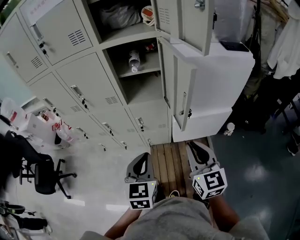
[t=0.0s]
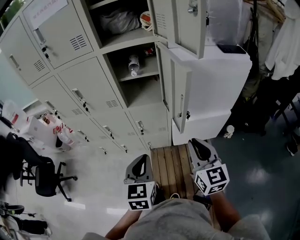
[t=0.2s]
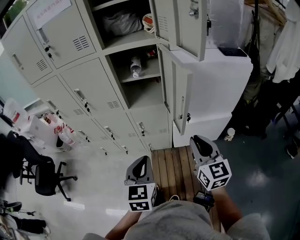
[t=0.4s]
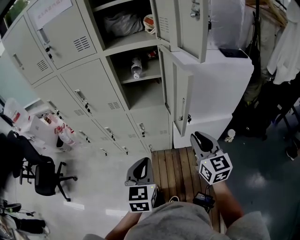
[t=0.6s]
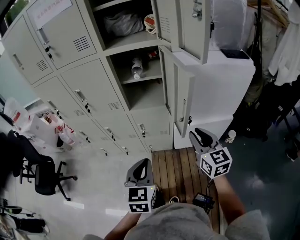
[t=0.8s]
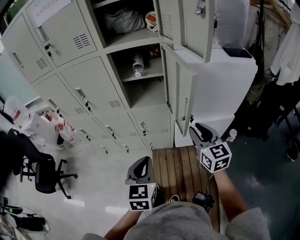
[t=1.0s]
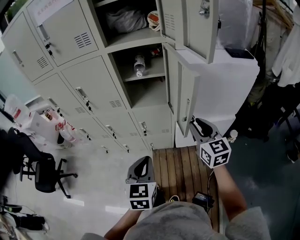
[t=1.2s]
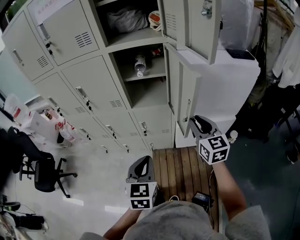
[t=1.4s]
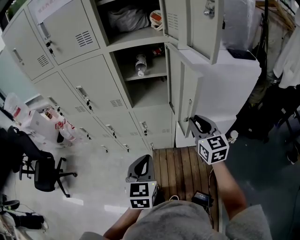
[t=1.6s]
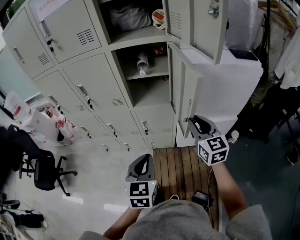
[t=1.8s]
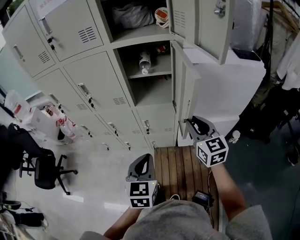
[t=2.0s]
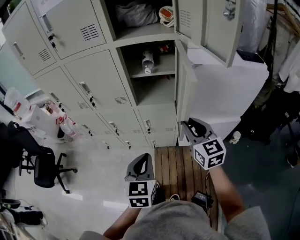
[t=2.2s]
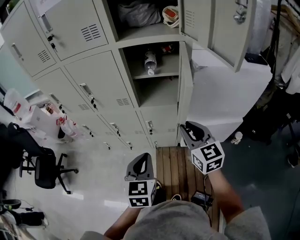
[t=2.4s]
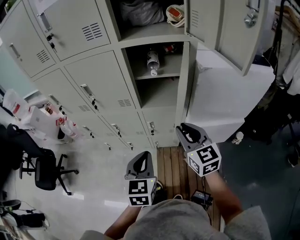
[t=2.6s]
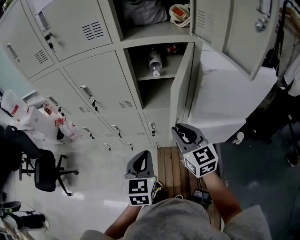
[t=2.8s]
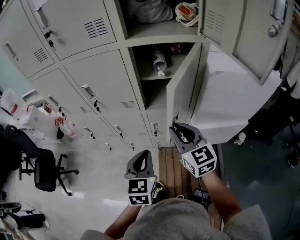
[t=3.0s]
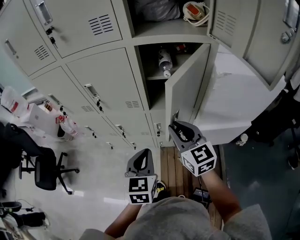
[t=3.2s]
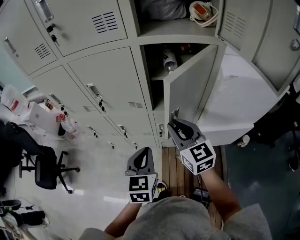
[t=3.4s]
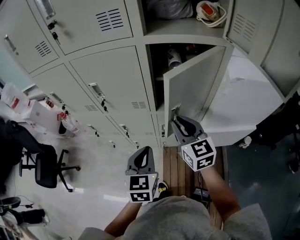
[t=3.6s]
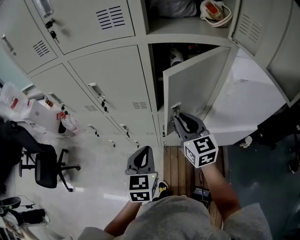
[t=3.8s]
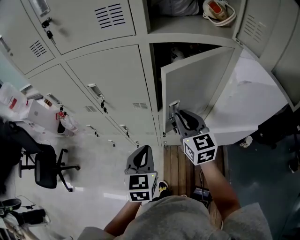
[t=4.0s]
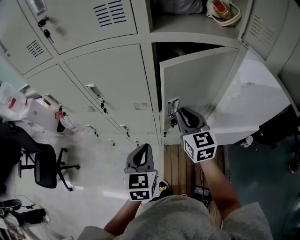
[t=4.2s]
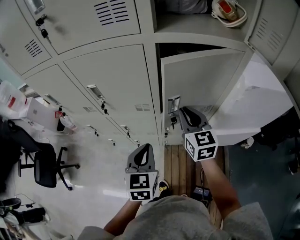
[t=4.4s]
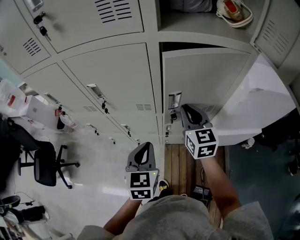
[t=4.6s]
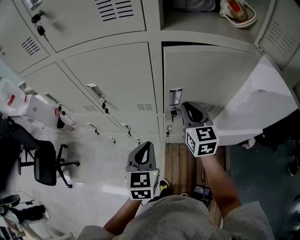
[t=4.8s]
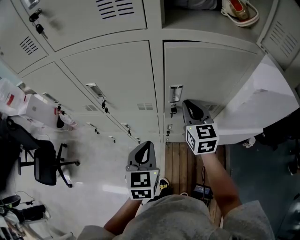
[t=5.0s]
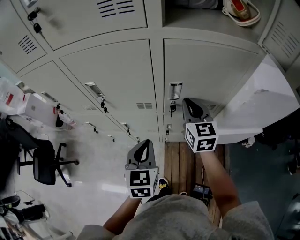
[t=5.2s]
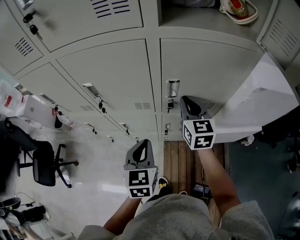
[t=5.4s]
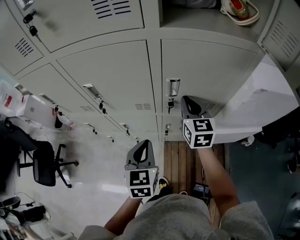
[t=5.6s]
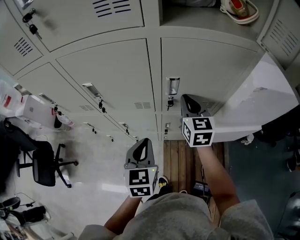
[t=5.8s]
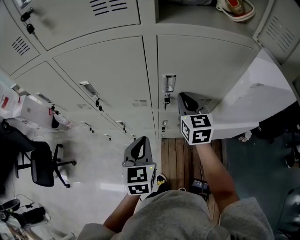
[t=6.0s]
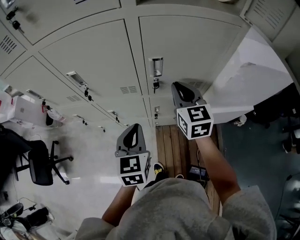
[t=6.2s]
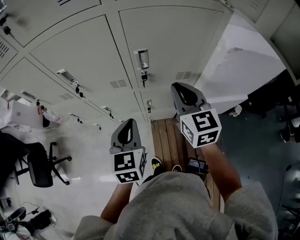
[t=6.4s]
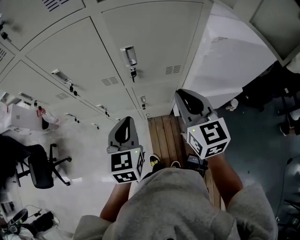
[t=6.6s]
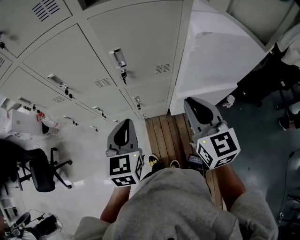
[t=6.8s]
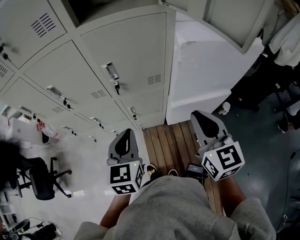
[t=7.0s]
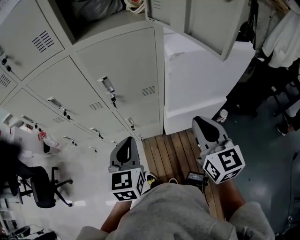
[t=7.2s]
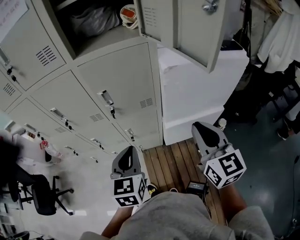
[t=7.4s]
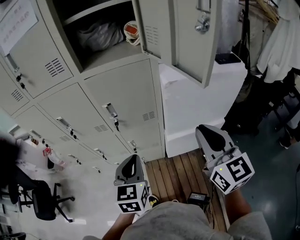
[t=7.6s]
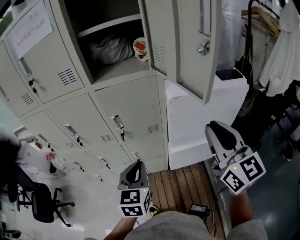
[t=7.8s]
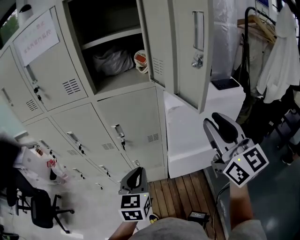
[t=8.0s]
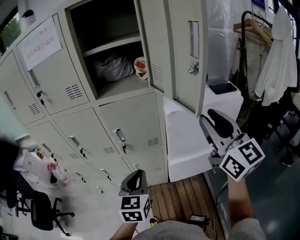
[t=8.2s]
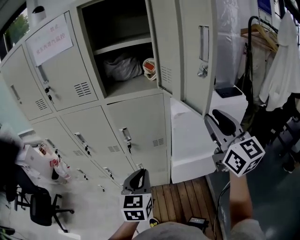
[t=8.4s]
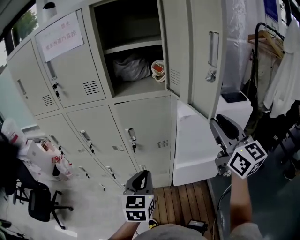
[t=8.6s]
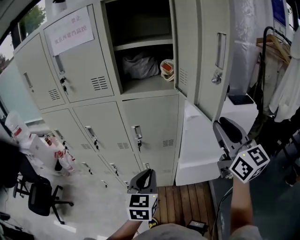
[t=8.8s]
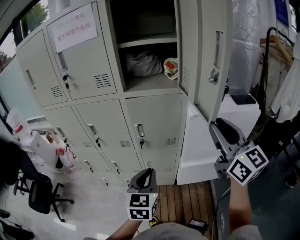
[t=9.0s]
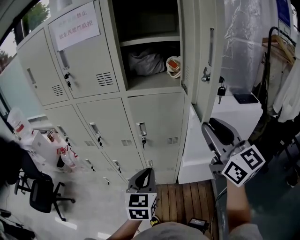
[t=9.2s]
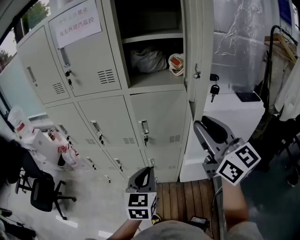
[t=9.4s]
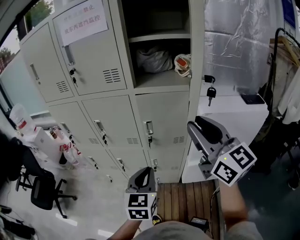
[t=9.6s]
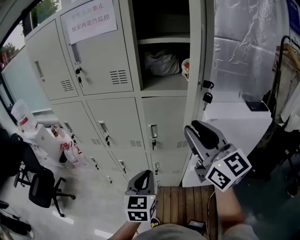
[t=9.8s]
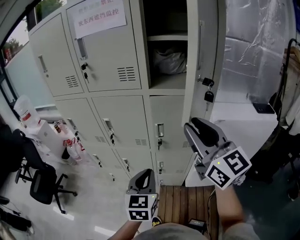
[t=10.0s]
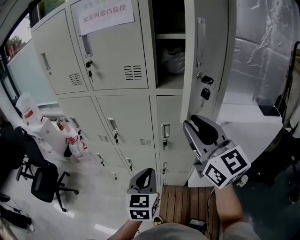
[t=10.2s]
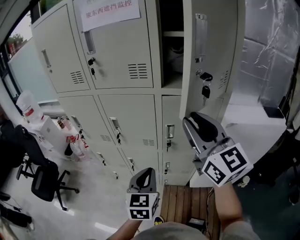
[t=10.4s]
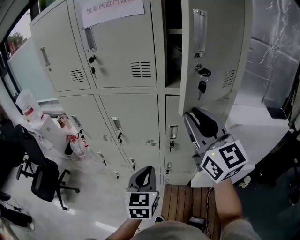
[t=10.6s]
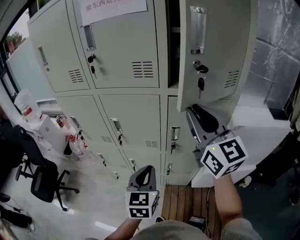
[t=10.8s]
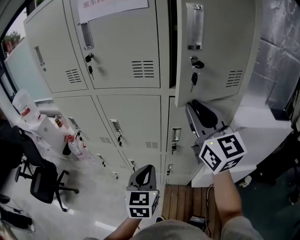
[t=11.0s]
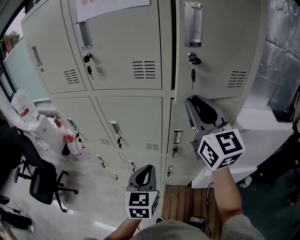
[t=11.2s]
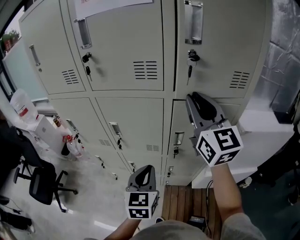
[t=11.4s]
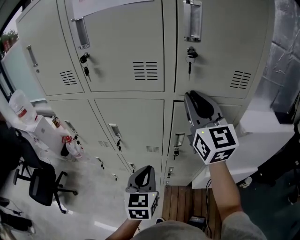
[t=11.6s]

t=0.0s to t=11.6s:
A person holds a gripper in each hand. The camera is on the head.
t=0.0s to t=1.4s: The right gripper goes approximately 15 cm forward.
t=1.4s to t=2.8s: The left gripper is displaced forward and to the left by about 10 cm. The right gripper shifts some 15 cm to the left.
t=2.8s to t=4.4s: The right gripper shifts roughly 15 cm forward; the left gripper moves forward and to the left, about 15 cm.
t=4.4s to t=5.8s: The right gripper heads forward, covering roughly 5 cm.
t=5.8s to t=7.2s: The right gripper heads backward and to the right, covering approximately 35 cm. The left gripper shifts roughly 20 cm to the right, backward and upward.
t=7.2s to t=8.8s: The right gripper moves upward, roughly 20 cm, and swivels roughly 20 degrees, while the left gripper shifts about 5 cm upward.
t=8.8s to t=10.2s: The left gripper is displaced to the left by about 10 cm. The right gripper travels to the left and forward by approximately 25 cm.
t=10.2s to t=11.6s: The right gripper travels forward by some 15 cm. Meanwhile the left gripper heads forward, covering roughly 10 cm.

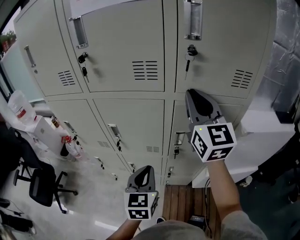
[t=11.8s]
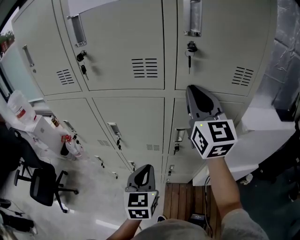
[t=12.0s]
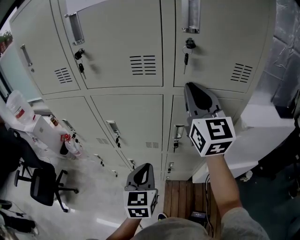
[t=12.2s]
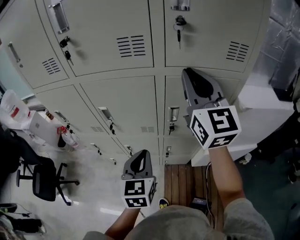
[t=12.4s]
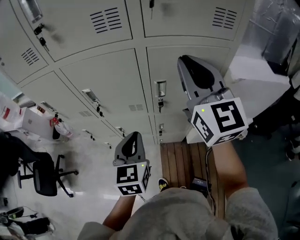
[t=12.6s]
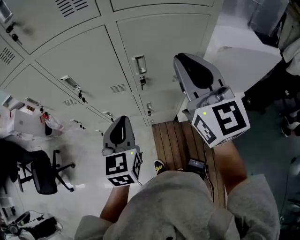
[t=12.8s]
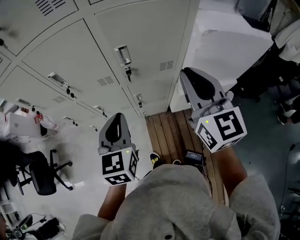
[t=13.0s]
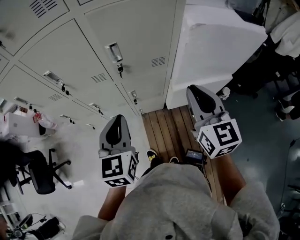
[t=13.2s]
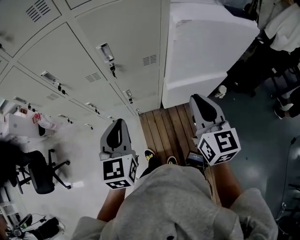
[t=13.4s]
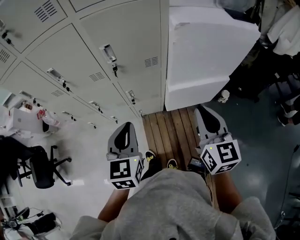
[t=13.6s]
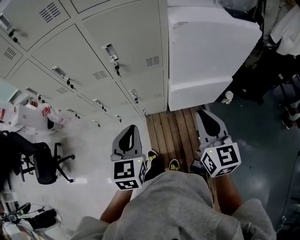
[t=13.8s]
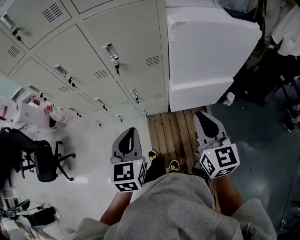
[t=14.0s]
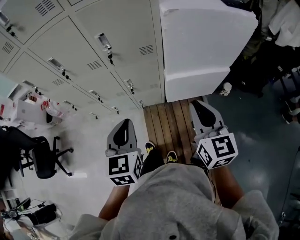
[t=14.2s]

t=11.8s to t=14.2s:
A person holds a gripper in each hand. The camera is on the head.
t=11.8s to t=13.0s: The right gripper travels backward, downward and to the right by roughly 25 cm; the left gripper heads backward and to the right, covering about 10 cm.
t=13.0s to t=14.2s: The left gripper goes about 20 cm backward and to the right; the right gripper heads backward, to the right and downward, covering about 25 cm.

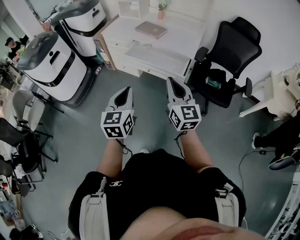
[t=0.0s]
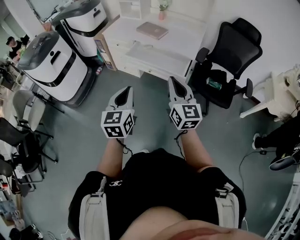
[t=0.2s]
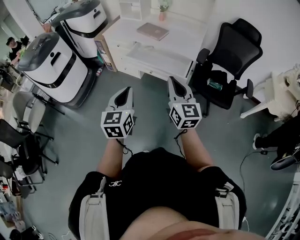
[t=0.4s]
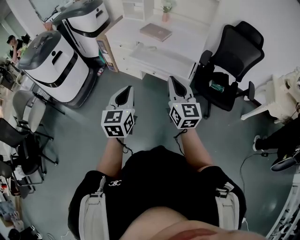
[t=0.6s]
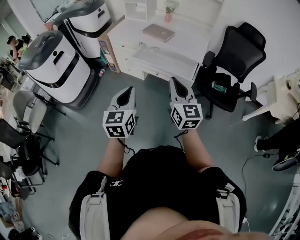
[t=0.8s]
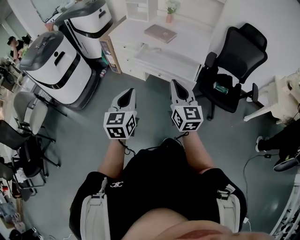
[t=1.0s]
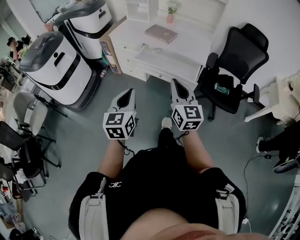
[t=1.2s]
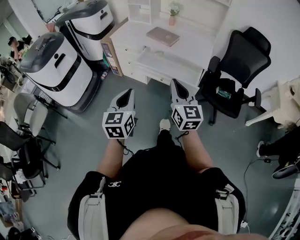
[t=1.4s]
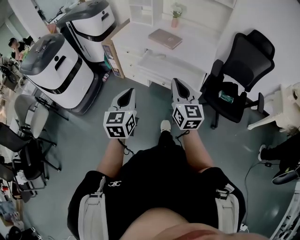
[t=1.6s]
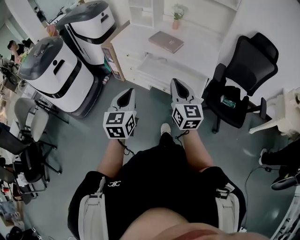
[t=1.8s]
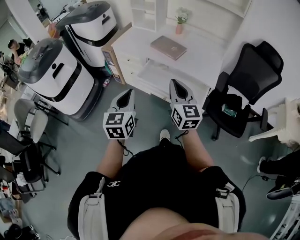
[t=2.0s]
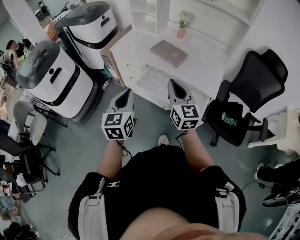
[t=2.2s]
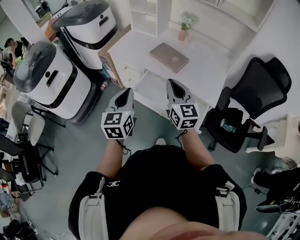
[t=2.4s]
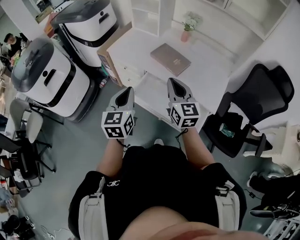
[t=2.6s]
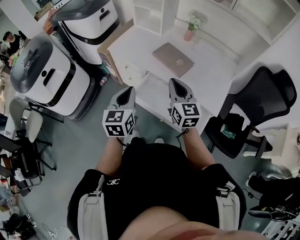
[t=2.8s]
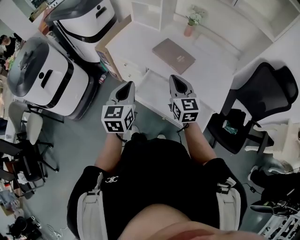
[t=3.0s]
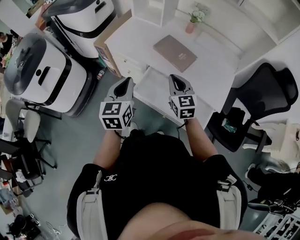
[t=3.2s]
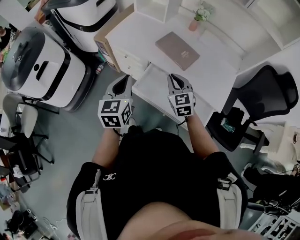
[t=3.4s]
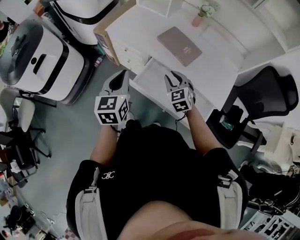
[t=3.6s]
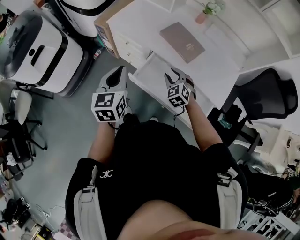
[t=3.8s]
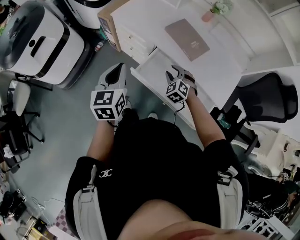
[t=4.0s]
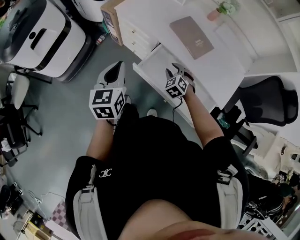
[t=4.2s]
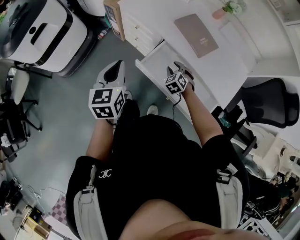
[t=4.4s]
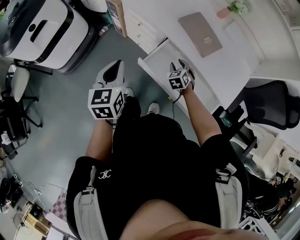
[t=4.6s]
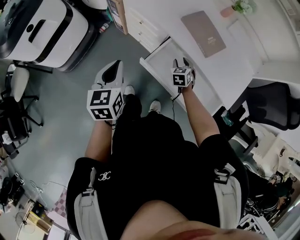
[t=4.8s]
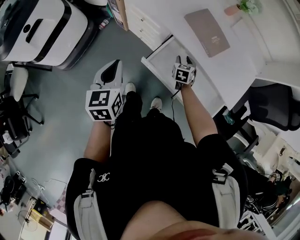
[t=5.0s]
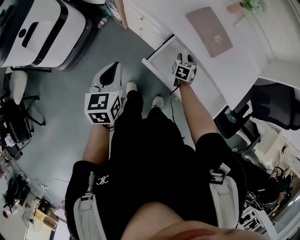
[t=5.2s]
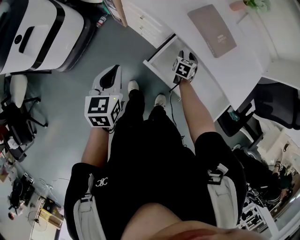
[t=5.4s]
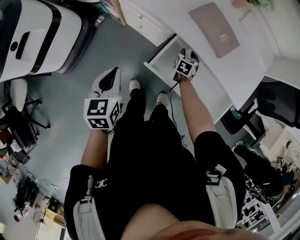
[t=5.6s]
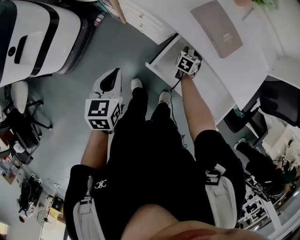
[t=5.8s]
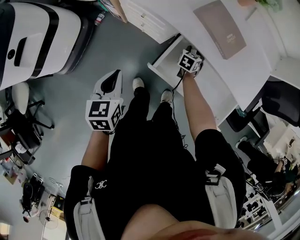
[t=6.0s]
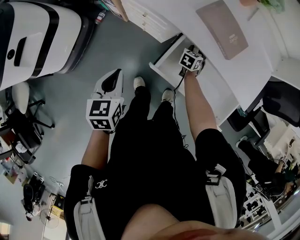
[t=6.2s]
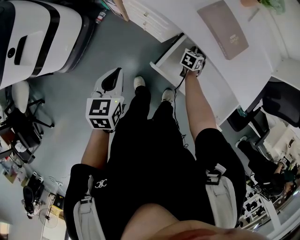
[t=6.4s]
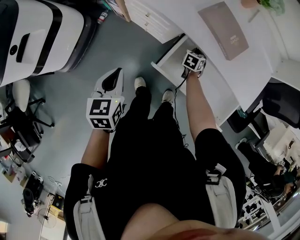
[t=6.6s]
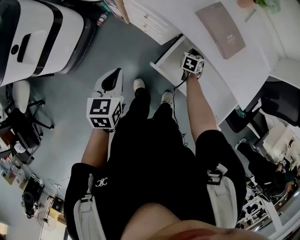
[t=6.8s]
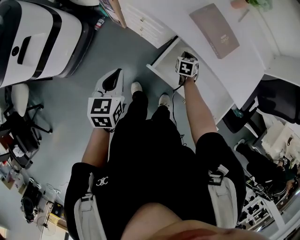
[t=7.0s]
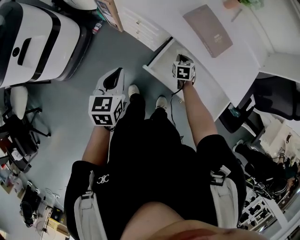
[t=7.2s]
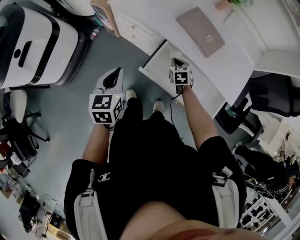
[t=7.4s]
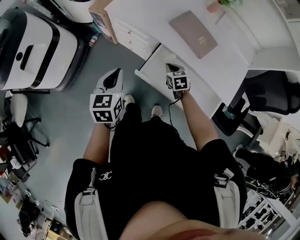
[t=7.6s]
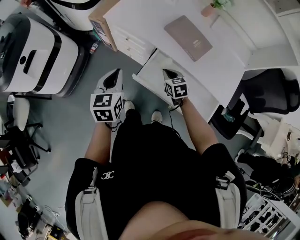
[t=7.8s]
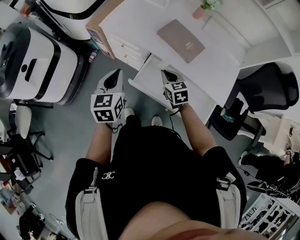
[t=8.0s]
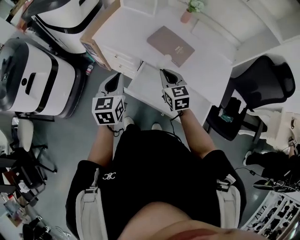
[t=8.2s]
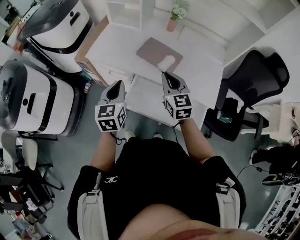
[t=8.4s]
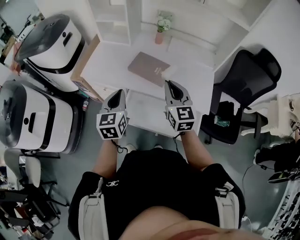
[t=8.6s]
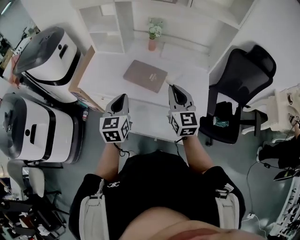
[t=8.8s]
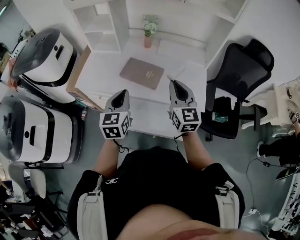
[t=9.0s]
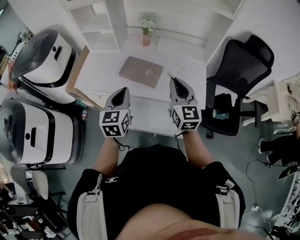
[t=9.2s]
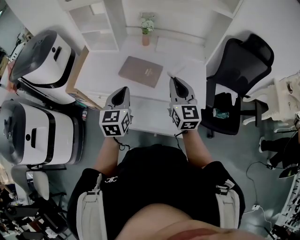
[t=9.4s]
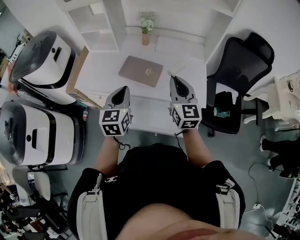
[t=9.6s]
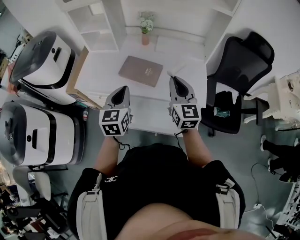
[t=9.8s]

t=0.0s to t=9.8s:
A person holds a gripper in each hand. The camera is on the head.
t=0.0s to t=1.4s: Both grippers move to the left and forward, about 10 cm.
t=1.4s to t=2.8s: The pair of grippers is taken forward, roughly 40 cm.
t=2.8s to t=4.2s: The left gripper moves to the left, downward and forward, about 15 cm, while the right gripper shifts roughly 30 cm downward, points its fingers some 40 degrees further downward, and opens up.
t=4.2s to t=5.6s: The left gripper heads downward, to the left and forward, covering some 15 cm. Meanwhile the right gripper travels downward and forward by about 20 cm, and rotates around the line of its fingers by roughly 60 degrees, clockwise from behind.
t=5.6s to t=7.0s: The right gripper closes its fingers.
t=7.0s to t=8.4s: The left gripper travels to the right and upward by roughly 25 cm, and changes its angle by roughly 20 degrees; the right gripper travels upward by approximately 40 cm, and angles its fingers upward, by approximately 40 degrees.
t=8.4s to t=9.8s: The left gripper shifts some 10 cm to the right, while the right gripper moves to the right and upward, some 15 cm, and swivels about 20 degrees.
